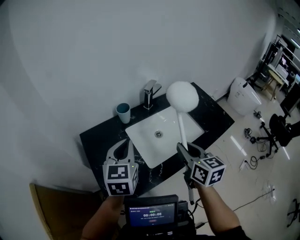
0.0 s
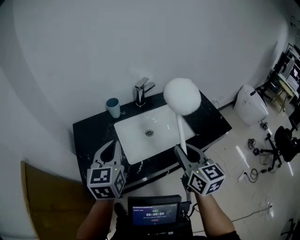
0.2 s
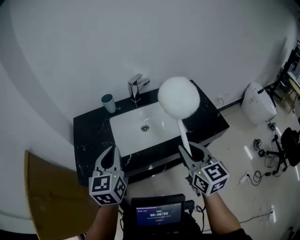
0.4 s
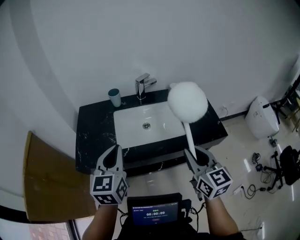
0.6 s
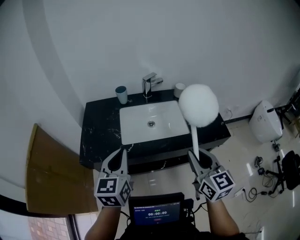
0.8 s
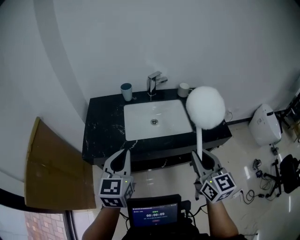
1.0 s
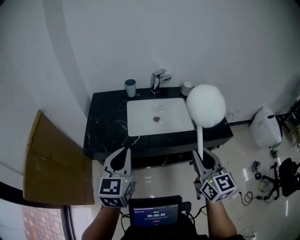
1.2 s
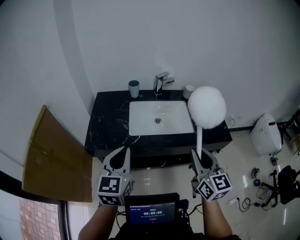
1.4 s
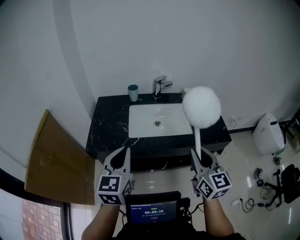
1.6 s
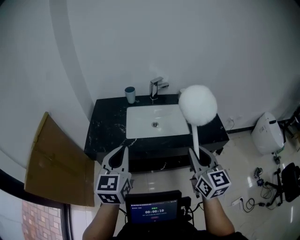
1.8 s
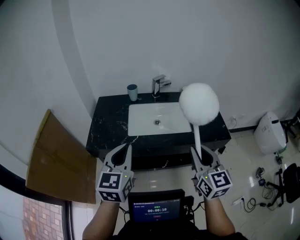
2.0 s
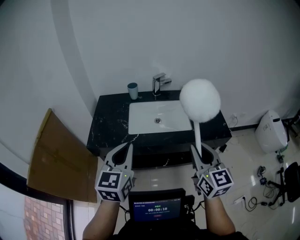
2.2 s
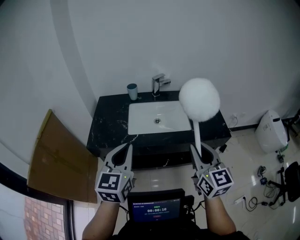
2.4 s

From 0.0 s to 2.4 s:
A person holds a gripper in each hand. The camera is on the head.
From 0.0 s to 1.2 s: Both grippers travel together backward and to the right, some 35 cm. The left gripper swivels roughly 20 degrees; the right gripper rotates some 30 degrees.
From 1.2 s to 2.4 s: The right gripper ends up roughly 5 cm from where it was. The left gripper moves to the right and backward, approximately 10 cm.

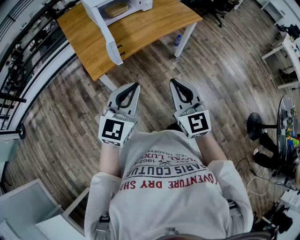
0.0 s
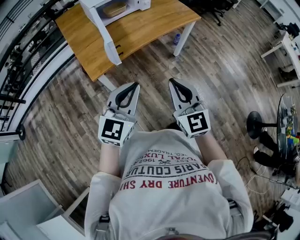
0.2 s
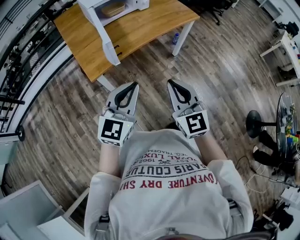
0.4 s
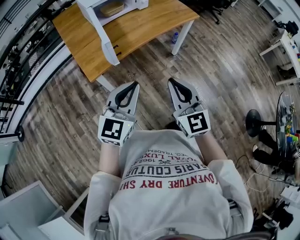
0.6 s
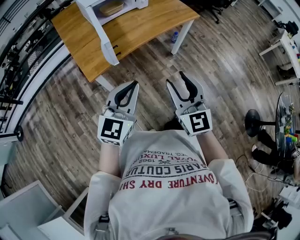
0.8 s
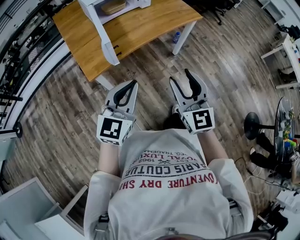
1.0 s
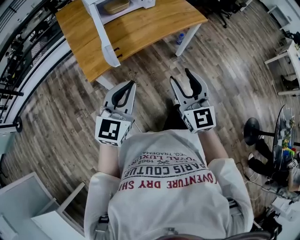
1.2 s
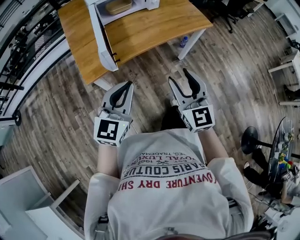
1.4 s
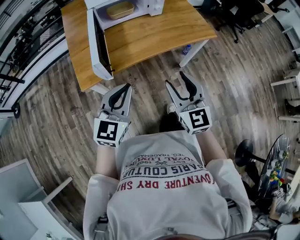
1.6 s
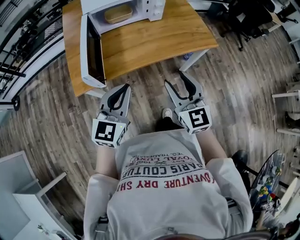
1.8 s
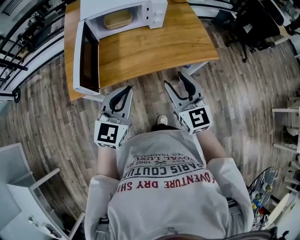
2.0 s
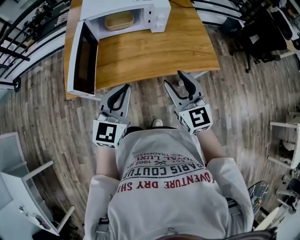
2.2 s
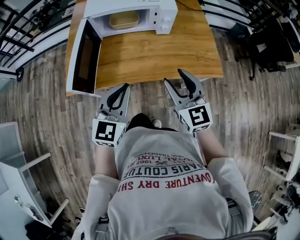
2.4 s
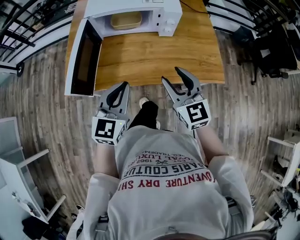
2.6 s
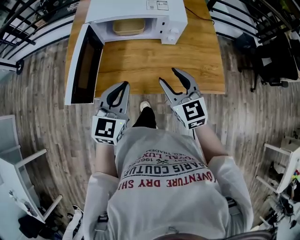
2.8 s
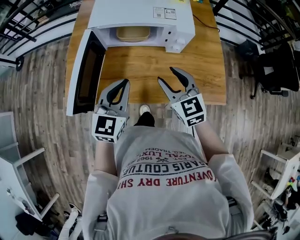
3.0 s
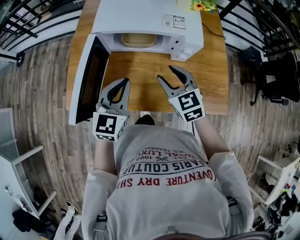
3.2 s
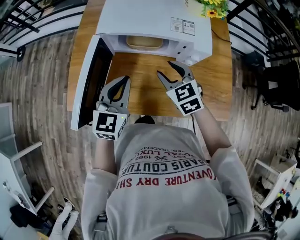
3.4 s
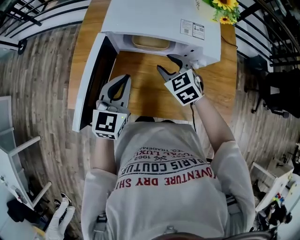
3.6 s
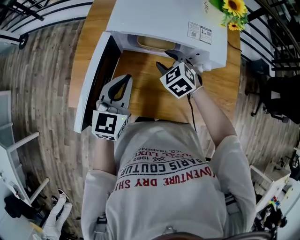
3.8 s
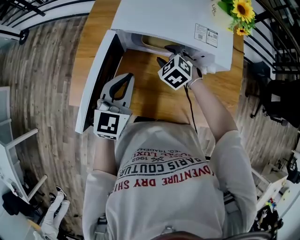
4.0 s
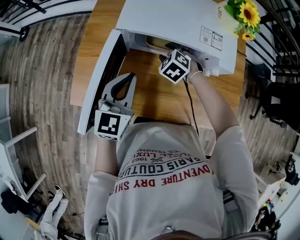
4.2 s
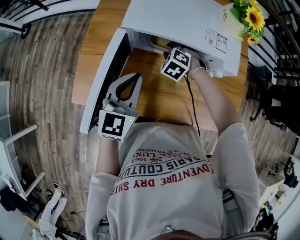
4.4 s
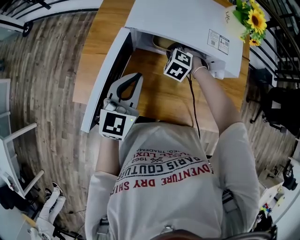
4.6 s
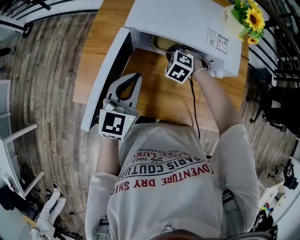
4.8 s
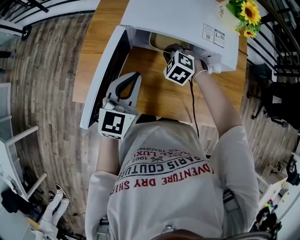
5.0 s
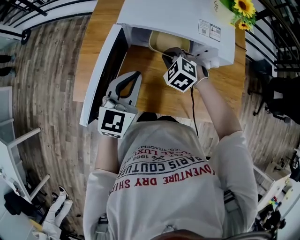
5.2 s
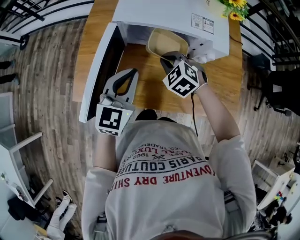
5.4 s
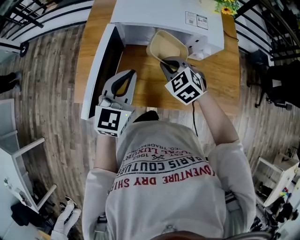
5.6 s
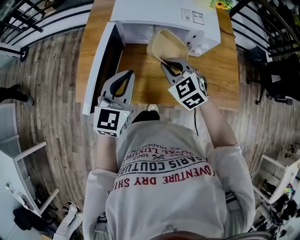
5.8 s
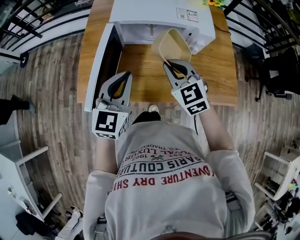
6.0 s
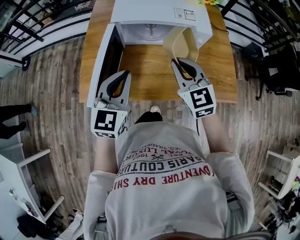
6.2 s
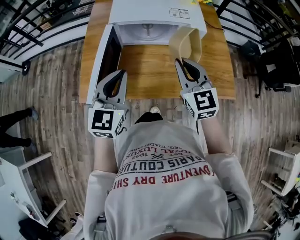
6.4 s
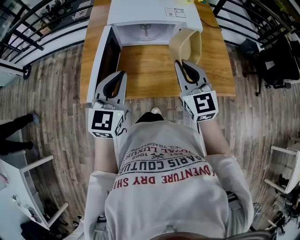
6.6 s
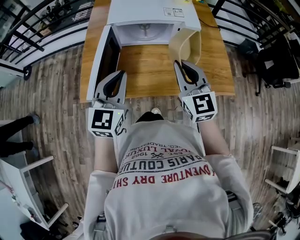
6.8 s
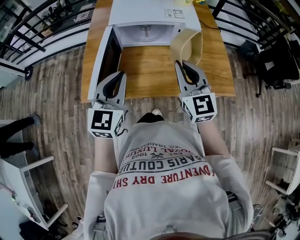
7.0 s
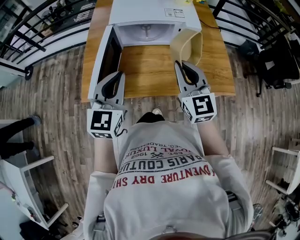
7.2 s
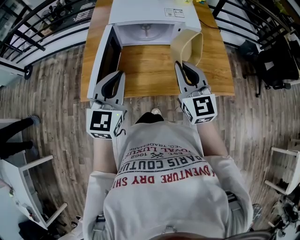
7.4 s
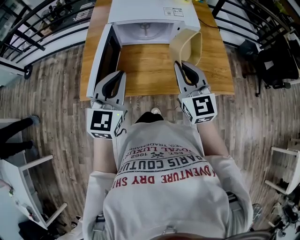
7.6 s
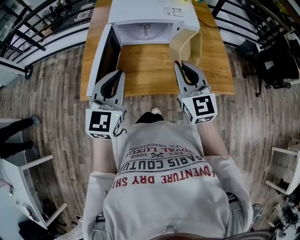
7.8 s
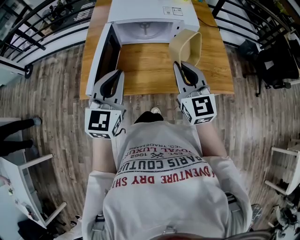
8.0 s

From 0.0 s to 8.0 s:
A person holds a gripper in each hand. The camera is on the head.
From 0.0 s to 1.6 s: The two grippers go approximately 15 cm forward. The right gripper opens its fingers.
From 1.6 s to 3.2 s: The left gripper changes place by approximately 30 cm, and rotates some 30 degrees, while the right gripper shifts by roughly 40 cm, and changes its angle by some 40 degrees.
From 3.2 s to 4.8 s: The left gripper is displaced to the left and forward by about 10 cm. The right gripper shifts approximately 25 cm forward, downward and to the left, tilts its fingers about 30 degrees downward, and closes its fingers.
From 4.8 s to 6.4 s: The left gripper goes roughly 15 cm backward and upward; the right gripper moves upward and backward, roughly 30 cm, and points its fingers roughly 50 degrees further upward.
From 6.4 s to 8.0 s: The right gripper shifts approximately 5 cm backward.

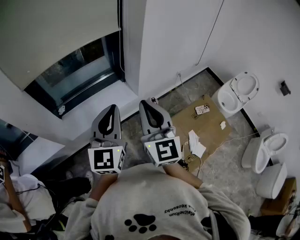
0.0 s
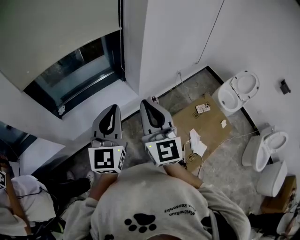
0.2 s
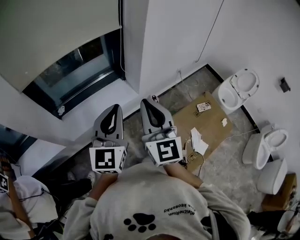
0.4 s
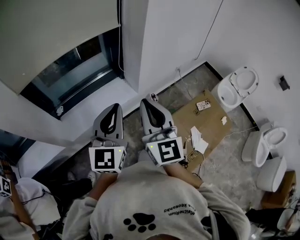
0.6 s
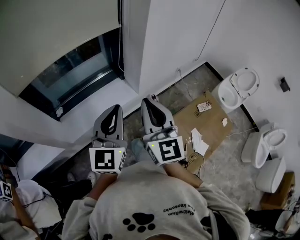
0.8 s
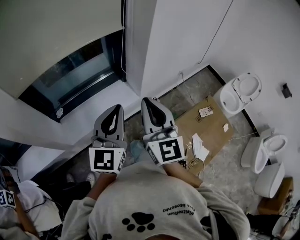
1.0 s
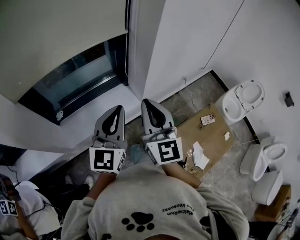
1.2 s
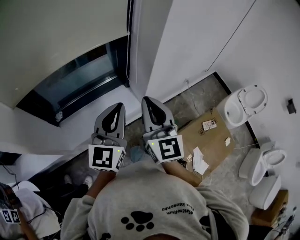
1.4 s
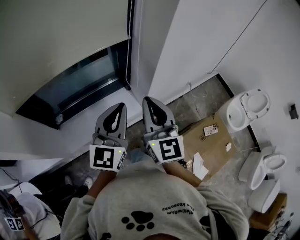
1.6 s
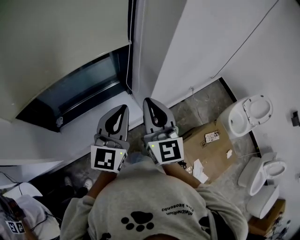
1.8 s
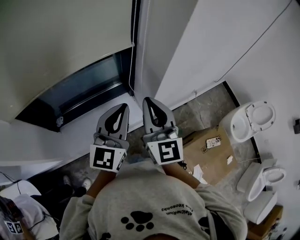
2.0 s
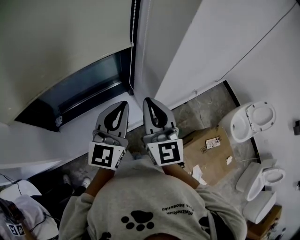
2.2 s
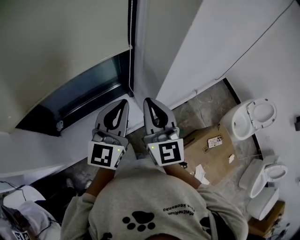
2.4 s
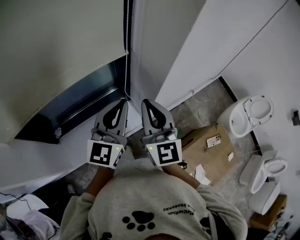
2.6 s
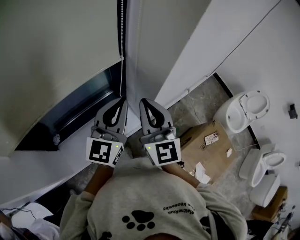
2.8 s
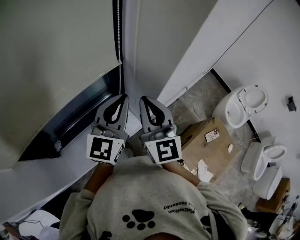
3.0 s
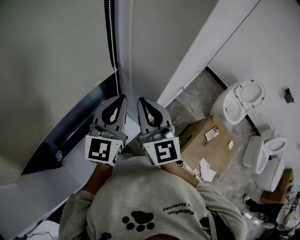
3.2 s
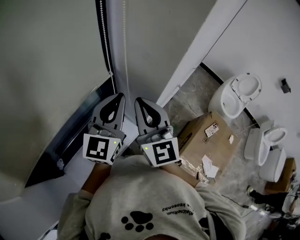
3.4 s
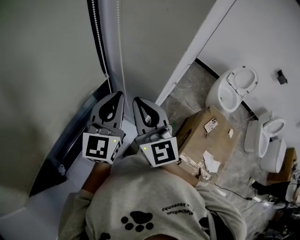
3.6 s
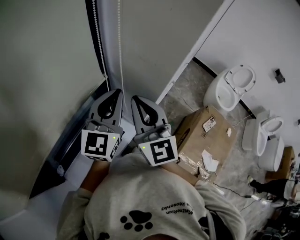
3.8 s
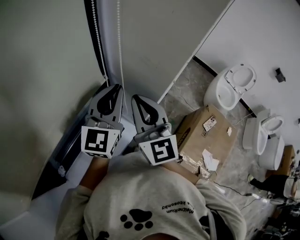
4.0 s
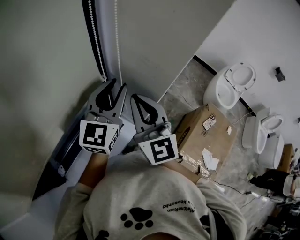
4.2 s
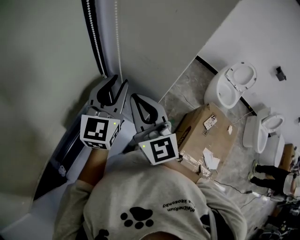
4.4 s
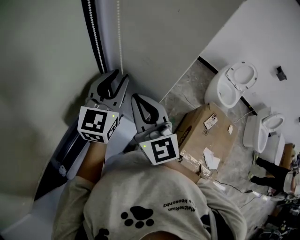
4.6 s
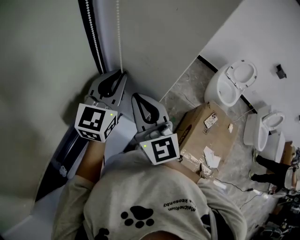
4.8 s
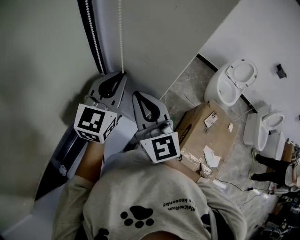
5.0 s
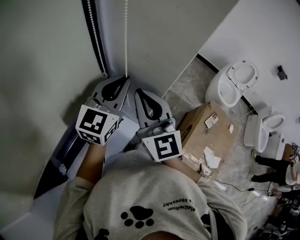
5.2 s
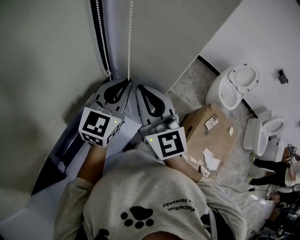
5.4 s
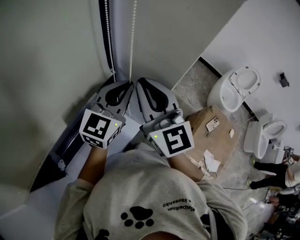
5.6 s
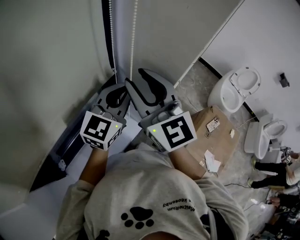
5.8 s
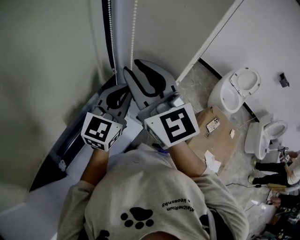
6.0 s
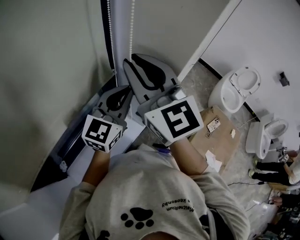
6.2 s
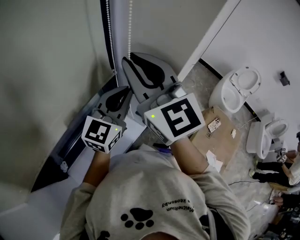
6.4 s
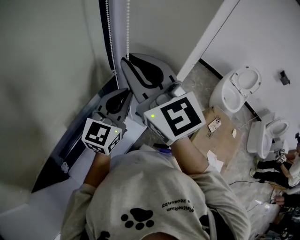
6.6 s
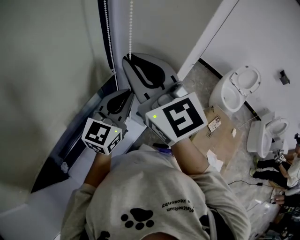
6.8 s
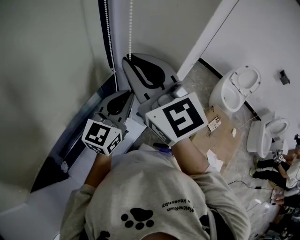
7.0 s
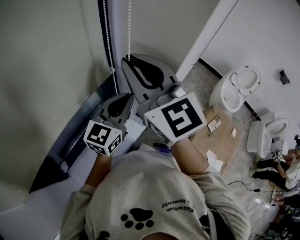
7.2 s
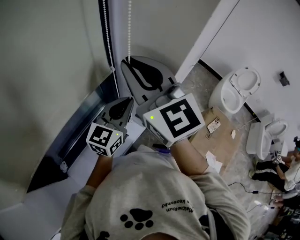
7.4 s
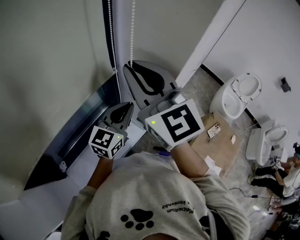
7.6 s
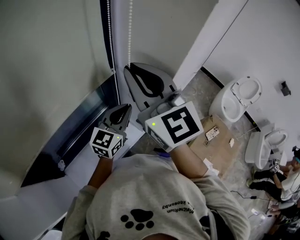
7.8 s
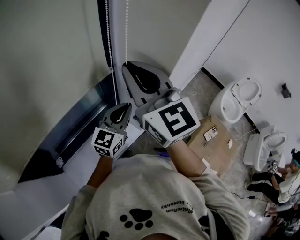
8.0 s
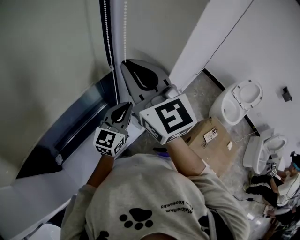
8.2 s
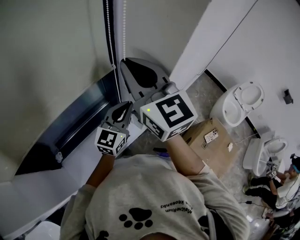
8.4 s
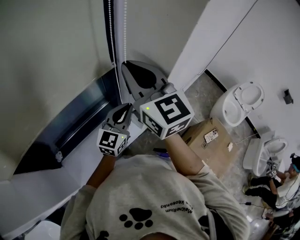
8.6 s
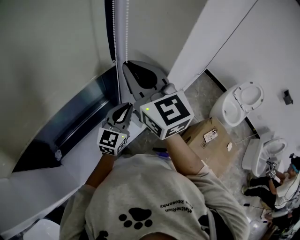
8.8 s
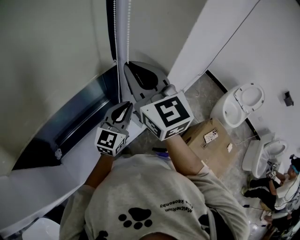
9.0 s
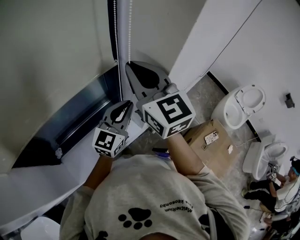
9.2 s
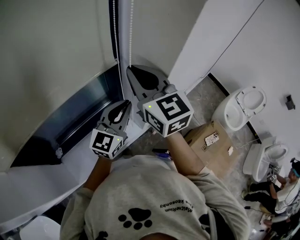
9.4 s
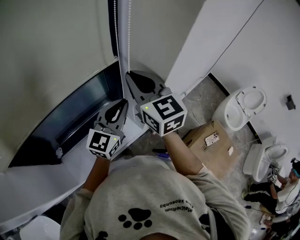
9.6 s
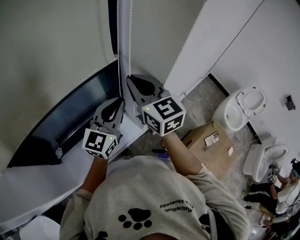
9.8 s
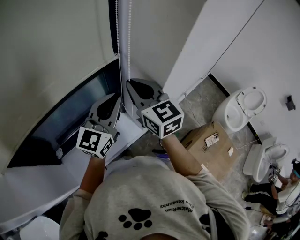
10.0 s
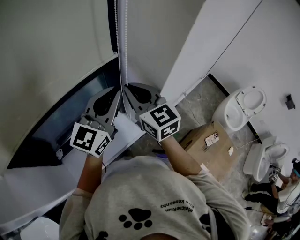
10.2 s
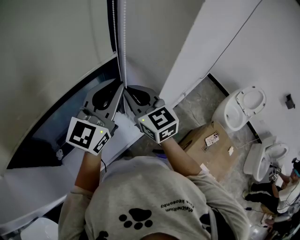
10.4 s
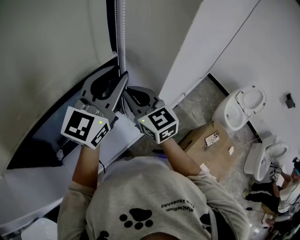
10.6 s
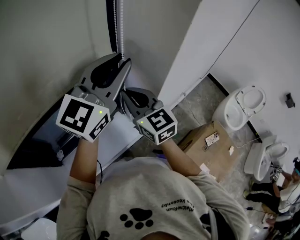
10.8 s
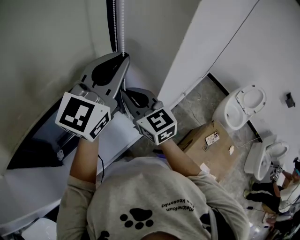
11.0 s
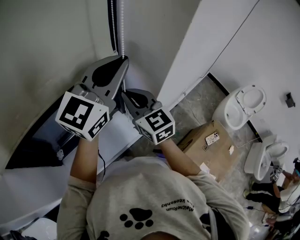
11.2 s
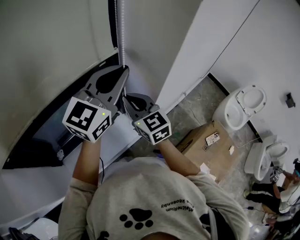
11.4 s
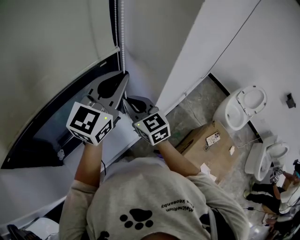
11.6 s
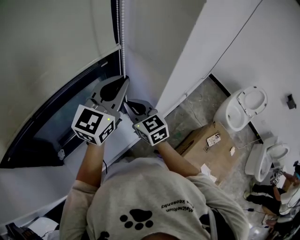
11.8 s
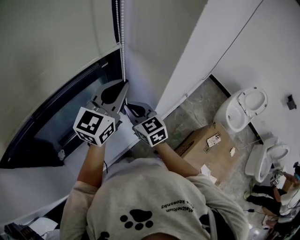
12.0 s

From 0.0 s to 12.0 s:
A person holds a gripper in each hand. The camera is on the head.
From 0.0 s to 1.6 s: Both grippers travel together forward, approximately 20 cm.
From 1.6 s to 3.0 s: The grippers both shift forward by about 15 cm.
From 3.0 s to 4.4 s: The left gripper goes some 10 cm forward, and opens up, while the right gripper goes approximately 5 cm forward.
From 4.4 s to 6.0 s: The left gripper closes. The right gripper heads upward, covering some 10 cm, and opens.
From 6.0 s to 7.6 s: The left gripper heads downward, covering approximately 5 cm.
From 7.6 s to 9.0 s: The grippers stay close to where they were, moving slightly.
From 9.0 s to 10.4 s: The left gripper moves upward, some 15 cm. The right gripper moves downward, some 10 cm.
From 10.4 s to 12.0 s: The left gripper moves approximately 5 cm upward and comes back. Meanwhile the right gripper is displaced downward by approximately 10 cm.

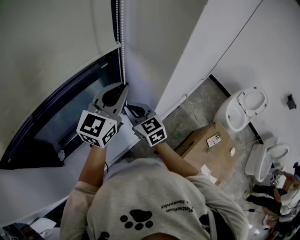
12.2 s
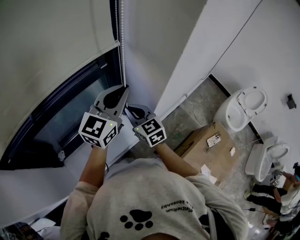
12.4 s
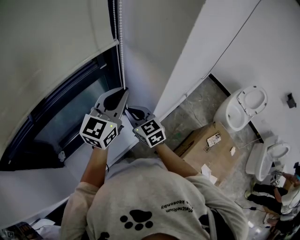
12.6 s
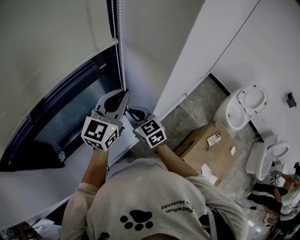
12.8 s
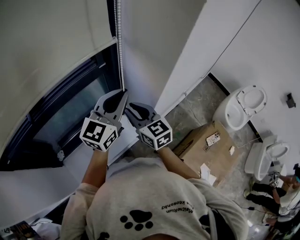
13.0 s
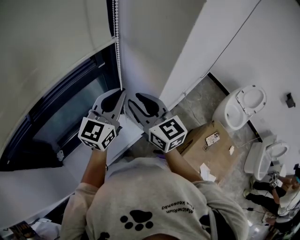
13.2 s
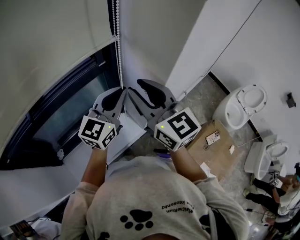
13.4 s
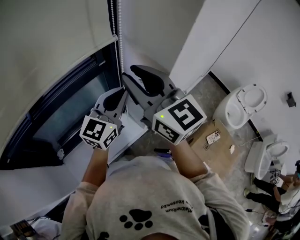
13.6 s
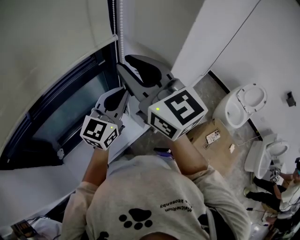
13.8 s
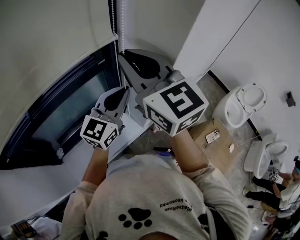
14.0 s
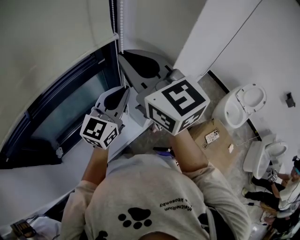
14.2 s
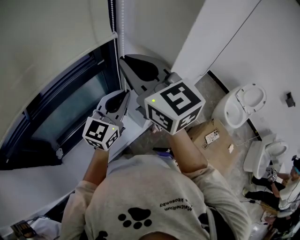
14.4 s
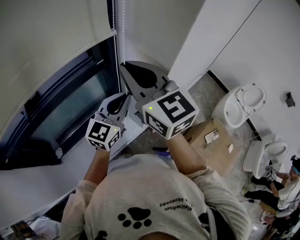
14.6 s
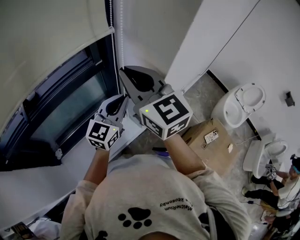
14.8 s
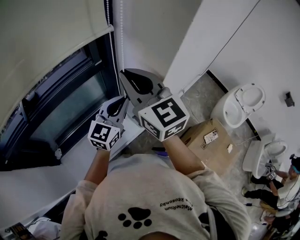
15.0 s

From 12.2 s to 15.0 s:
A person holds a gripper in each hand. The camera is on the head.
From 12.2 s to 13.6 s: The right gripper shifts some 25 cm upward, swivels approximately 20 degrees, and opens.
From 13.6 s to 15.0 s: The right gripper closes. Meanwhile the left gripper shifts some 5 cm downward.
